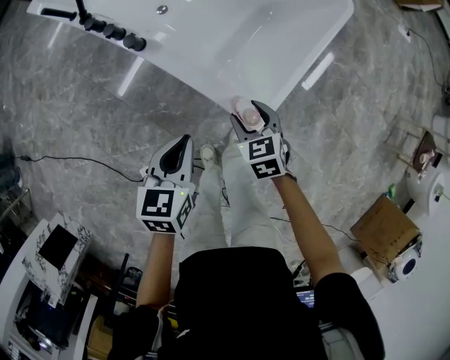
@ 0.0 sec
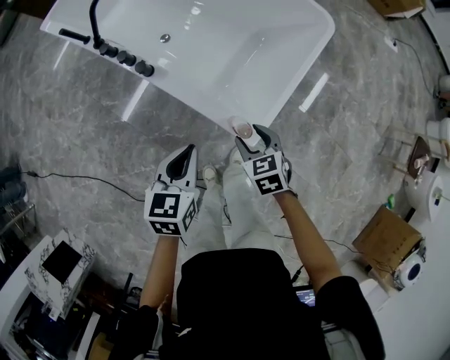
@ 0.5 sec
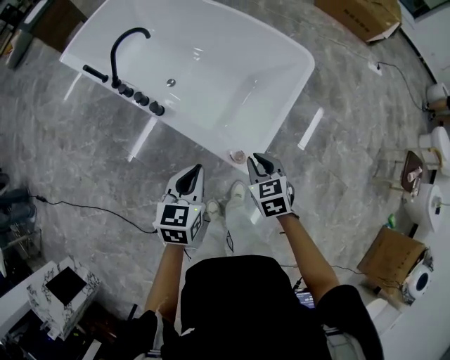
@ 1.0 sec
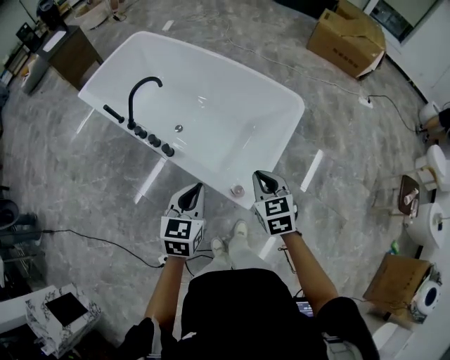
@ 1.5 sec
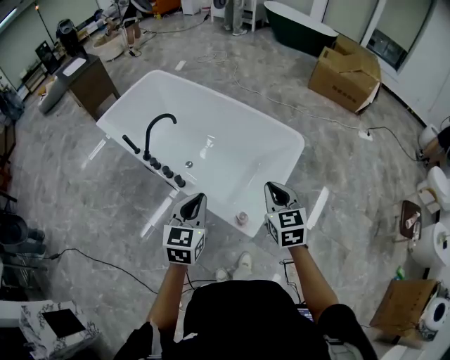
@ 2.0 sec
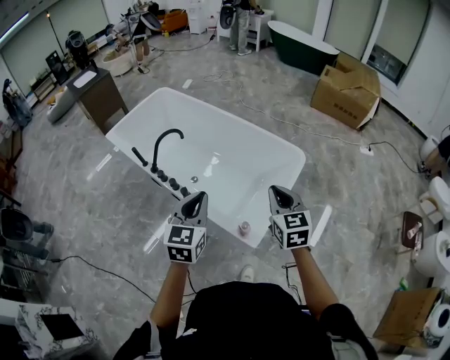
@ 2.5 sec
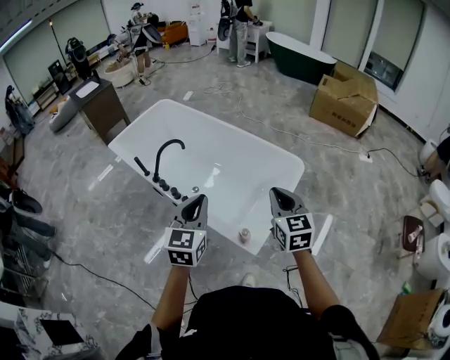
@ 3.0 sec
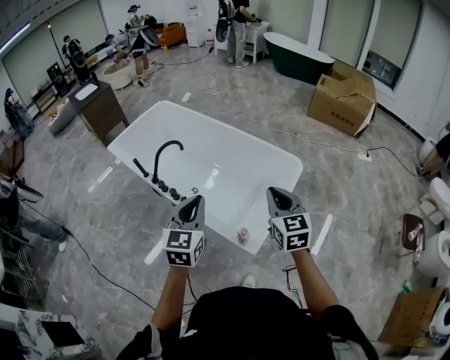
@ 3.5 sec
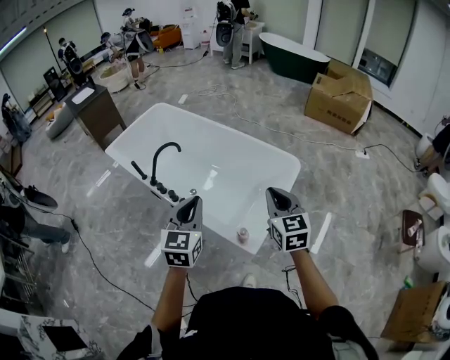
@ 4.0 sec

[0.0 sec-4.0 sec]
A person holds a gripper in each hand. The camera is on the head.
0.0 sec to 2.0 sec: Both grippers travel together upward, about 35 cm. The left gripper changes its angle by approximately 30 degrees, while the right gripper swivels approximately 30 degrees, and closes up.
2.0 sec to 4.0 sec: Both grippers move upward, approximately 10 cm.

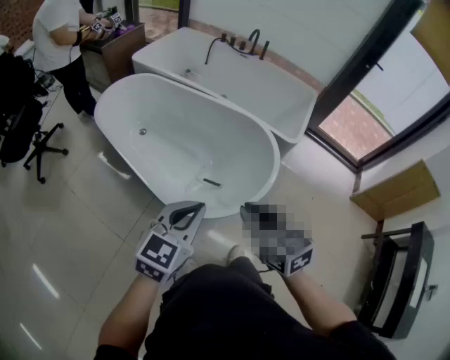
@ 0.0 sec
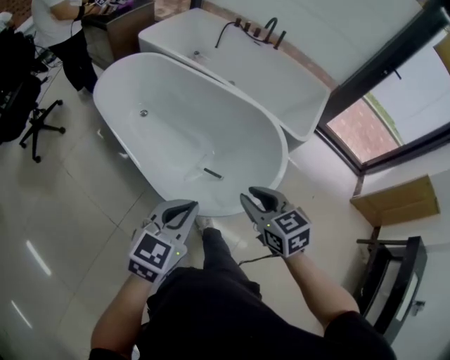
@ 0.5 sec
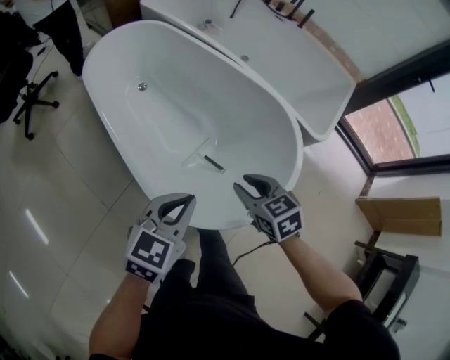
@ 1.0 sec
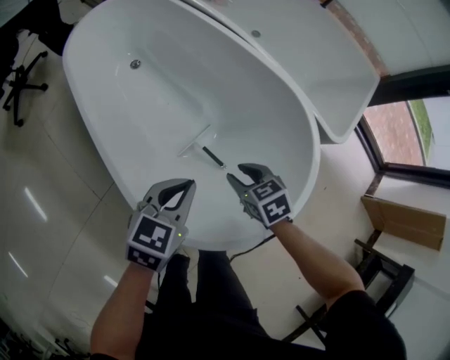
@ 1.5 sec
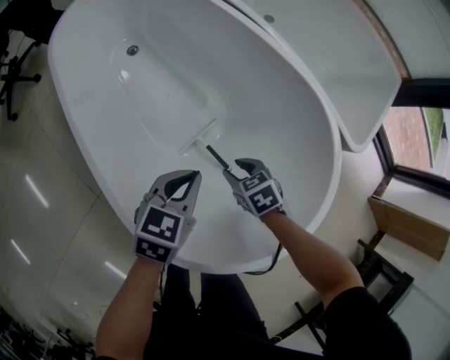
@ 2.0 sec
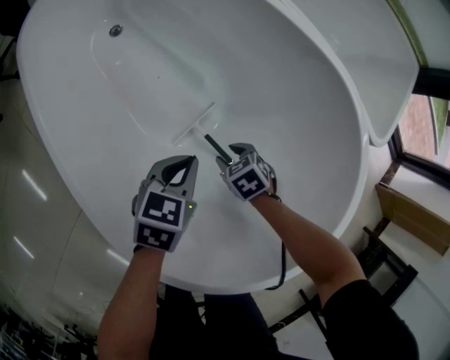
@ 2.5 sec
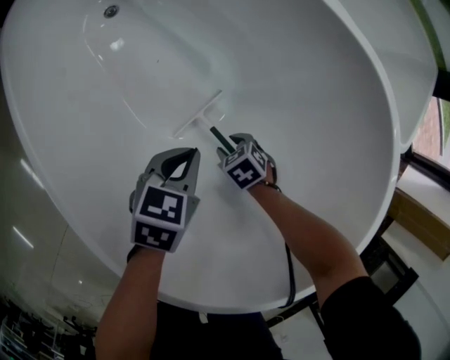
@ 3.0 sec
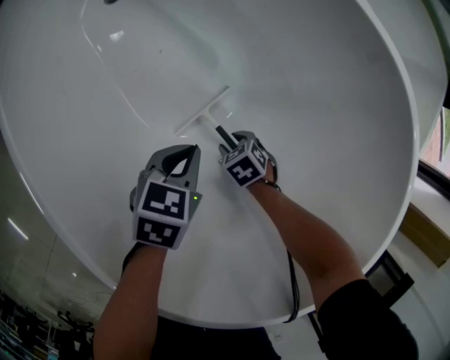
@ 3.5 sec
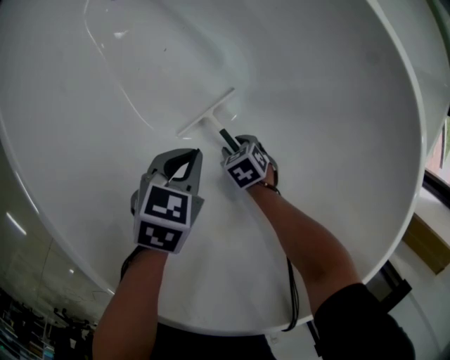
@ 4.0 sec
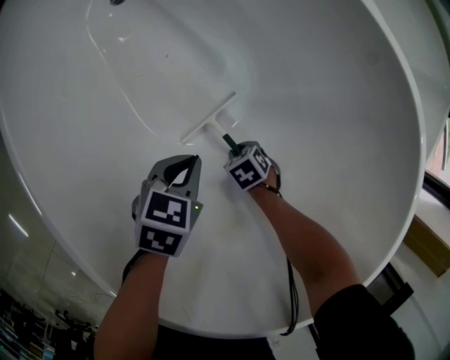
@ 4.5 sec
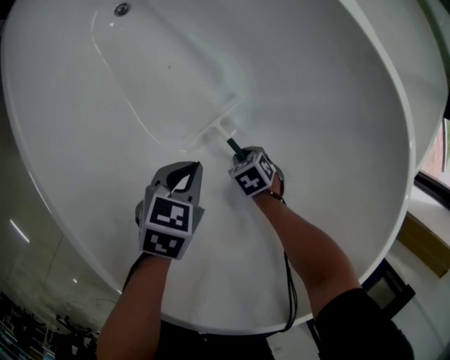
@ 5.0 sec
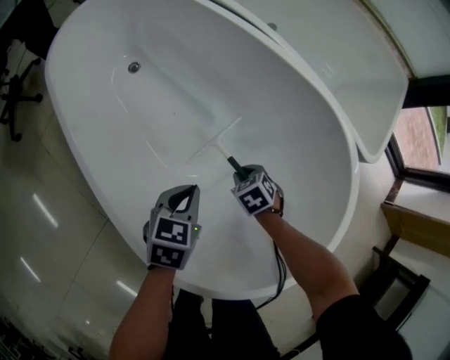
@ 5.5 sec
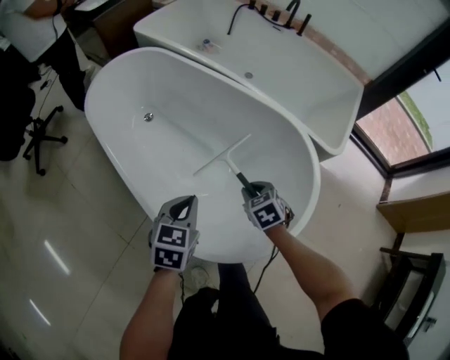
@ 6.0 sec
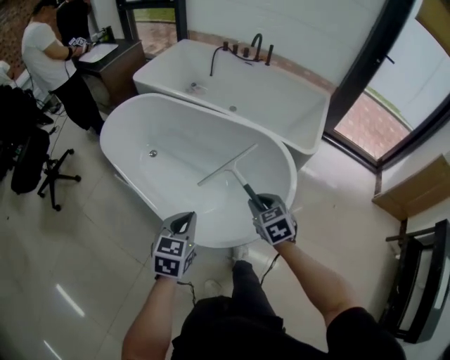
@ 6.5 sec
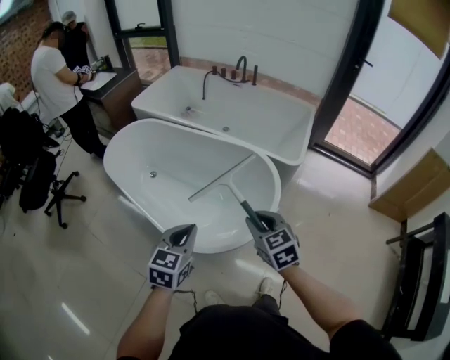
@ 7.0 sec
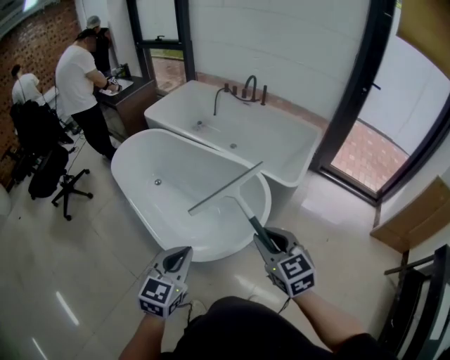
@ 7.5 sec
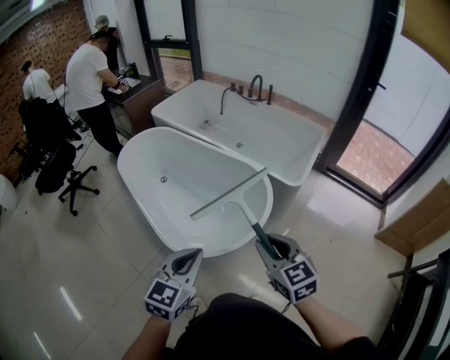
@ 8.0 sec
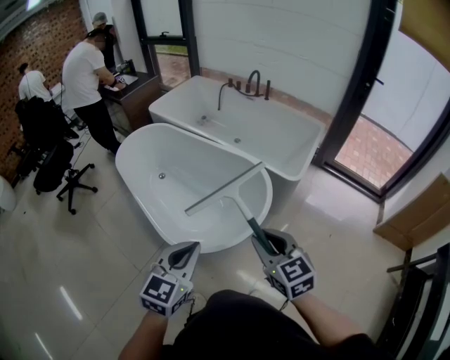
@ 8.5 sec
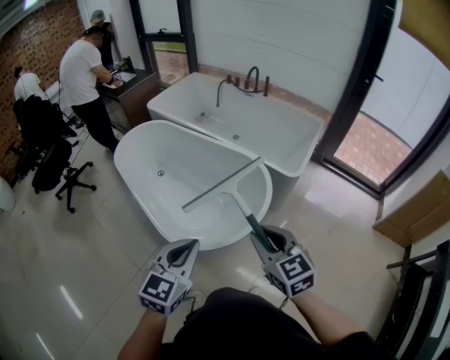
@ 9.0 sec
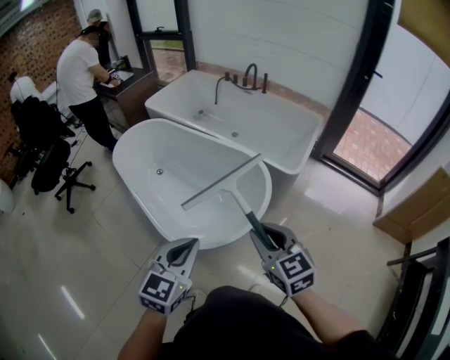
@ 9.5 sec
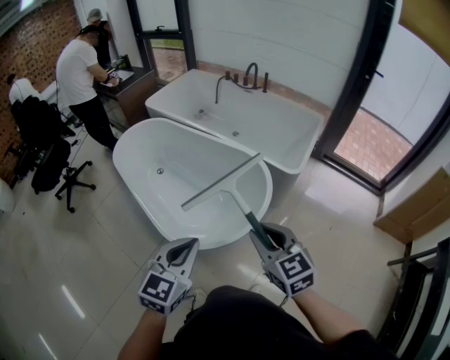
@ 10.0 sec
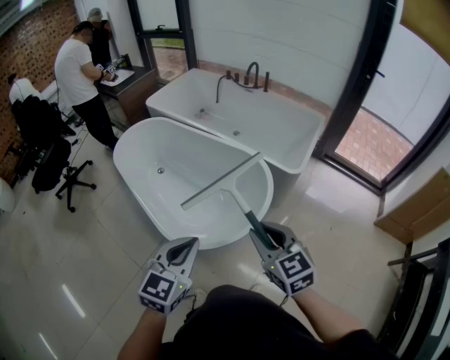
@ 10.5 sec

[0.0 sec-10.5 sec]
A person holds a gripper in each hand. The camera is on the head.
0.0 sec to 2.0 sec: Both grippers travel together downward and forward, roughly 50 cm. The left gripper changes its angle by about 30 degrees. Meanwhile the right gripper tips its fingers downward by some 40 degrees, and opens up.
2.0 sec to 4.0 sec: Both grippers move downward, about 25 cm.
4.0 sec to 6.5 sec: The grippers both shift upward by about 50 cm. The right gripper tips its fingers upward by some 40 degrees, and closes its fingers, while the left gripper swivels about 30 degrees.
6.5 sec to 8.5 sec: The left gripper heads to the right, upward and backward, covering approximately 25 cm. Meanwhile the right gripper heads upward, backward and to the right, covering about 30 cm, and swivels some 30 degrees.
8.5 sec to 10.5 sec: The two grippers keep their place.

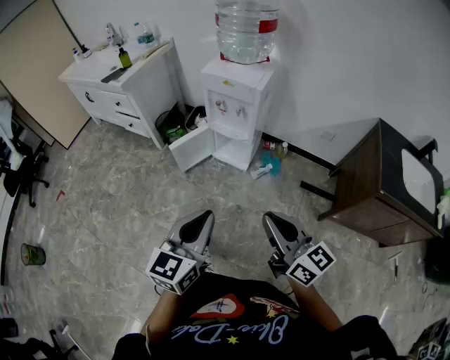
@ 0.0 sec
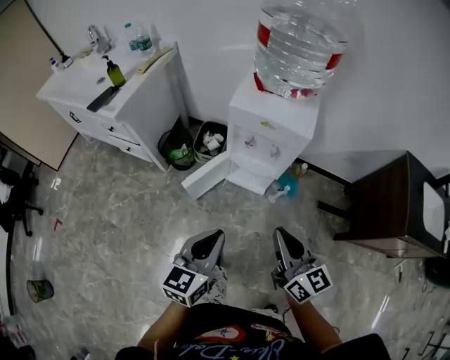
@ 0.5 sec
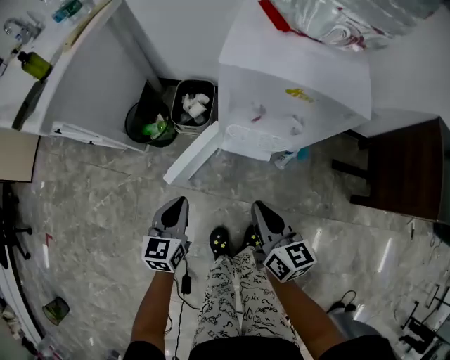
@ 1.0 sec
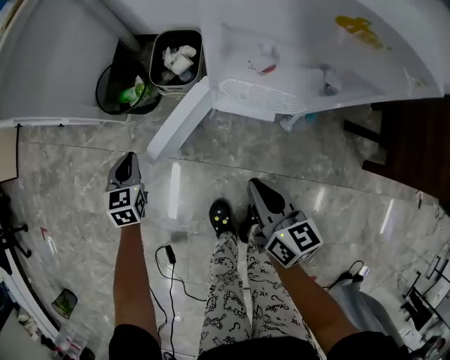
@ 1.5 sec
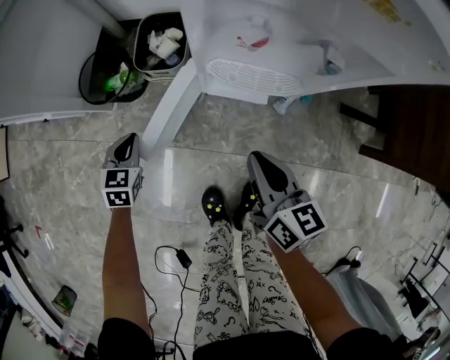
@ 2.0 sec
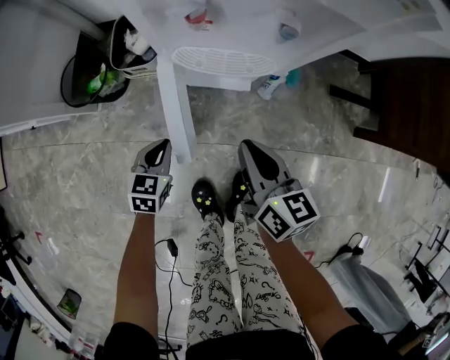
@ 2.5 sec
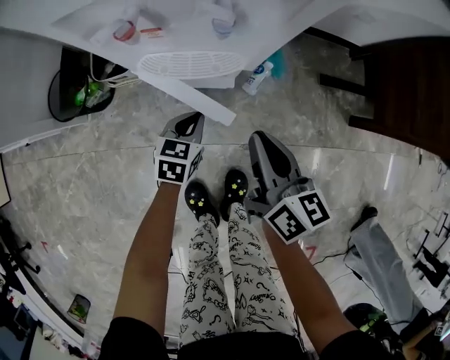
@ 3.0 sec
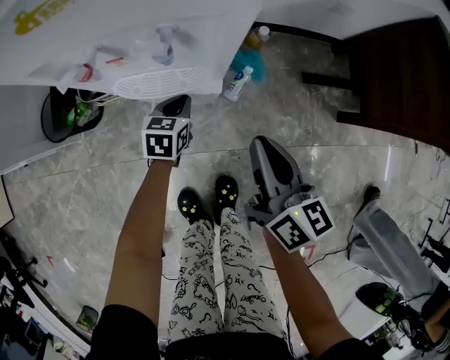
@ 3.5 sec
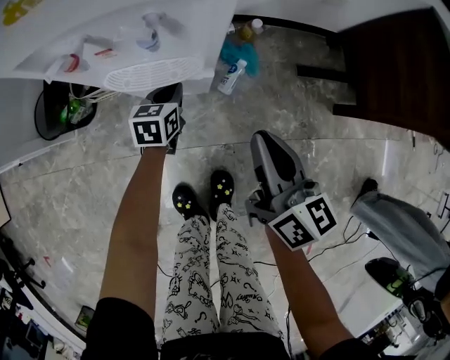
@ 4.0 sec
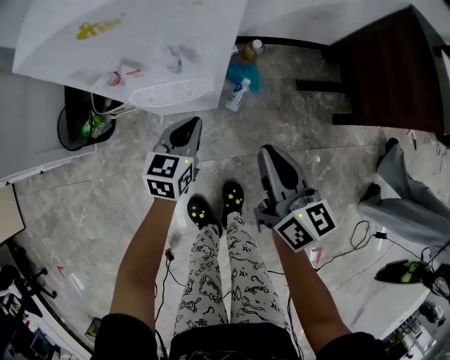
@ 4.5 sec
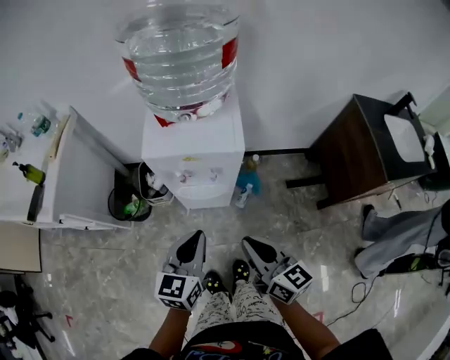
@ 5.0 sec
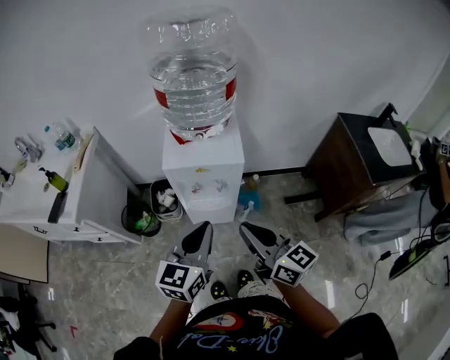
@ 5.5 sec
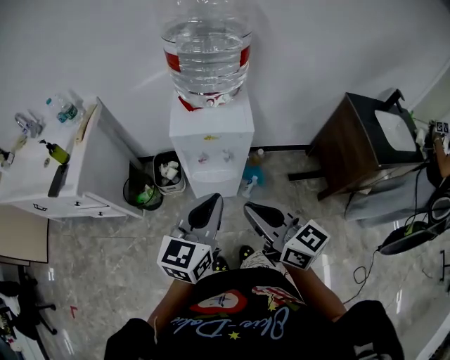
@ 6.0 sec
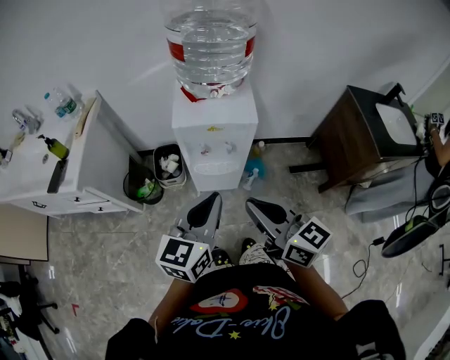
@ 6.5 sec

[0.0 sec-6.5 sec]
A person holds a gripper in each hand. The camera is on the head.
0.0 sec to 2.0 sec: The pair of grippers is taken forward and to the left, approximately 50 cm. Both grippers move downward, roughly 50 cm. The left gripper tips its fingers downward by roughly 40 degrees. Meanwhile the right gripper rotates about 40 degrees.
2.0 sec to 4.5 sec: The right gripper shifts by some 25 cm, and rotates approximately 20 degrees; the left gripper moves some 40 cm, and rotates some 30 degrees.
4.5 sec to 6.5 sec: The left gripper heads upward, covering approximately 40 cm, and swivels roughly 20 degrees. The right gripper travels upward and to the left by about 35 cm, and rotates roughly 30 degrees.

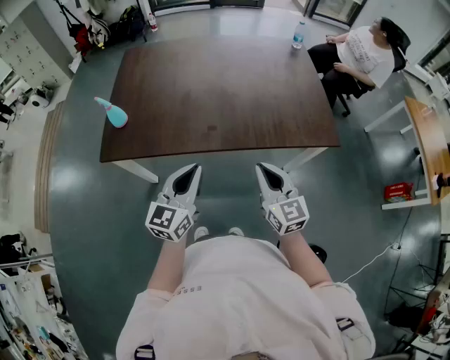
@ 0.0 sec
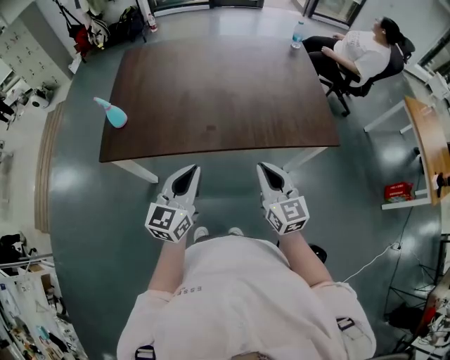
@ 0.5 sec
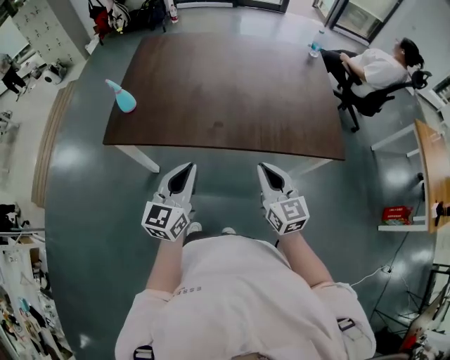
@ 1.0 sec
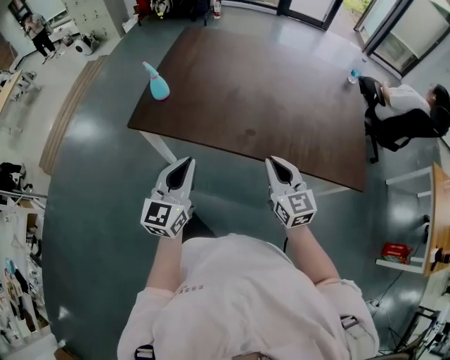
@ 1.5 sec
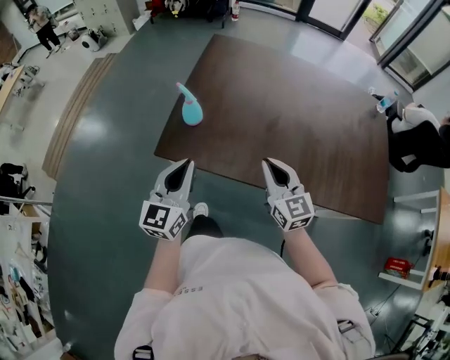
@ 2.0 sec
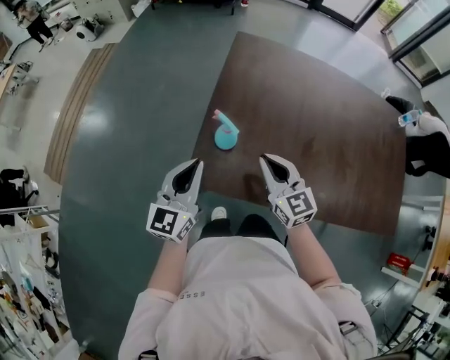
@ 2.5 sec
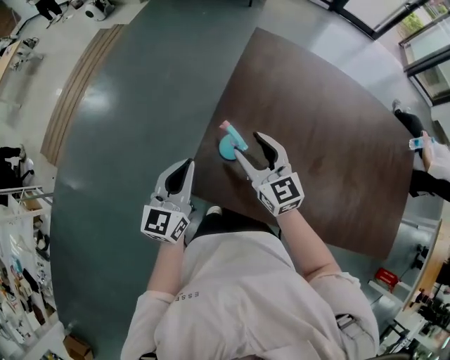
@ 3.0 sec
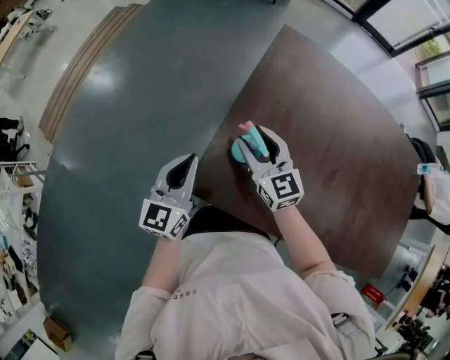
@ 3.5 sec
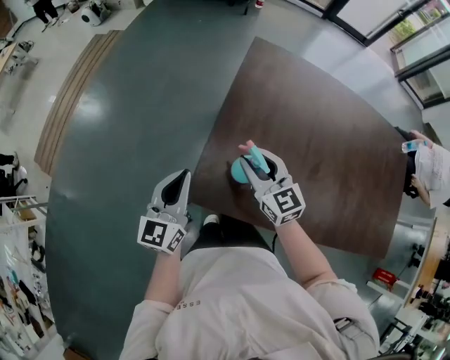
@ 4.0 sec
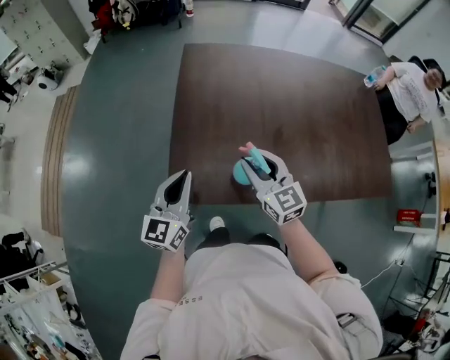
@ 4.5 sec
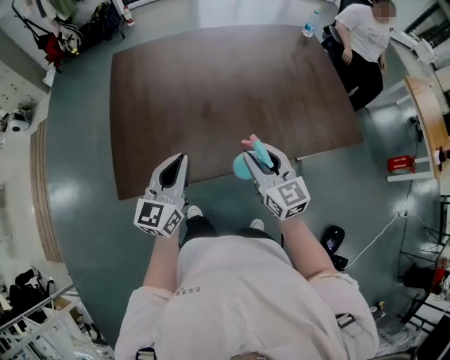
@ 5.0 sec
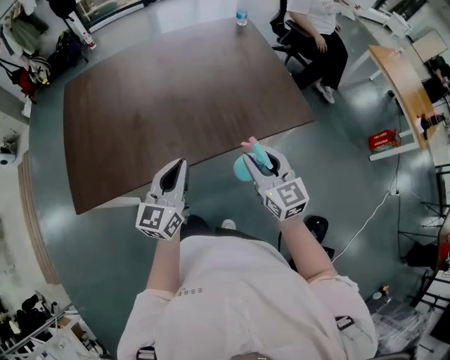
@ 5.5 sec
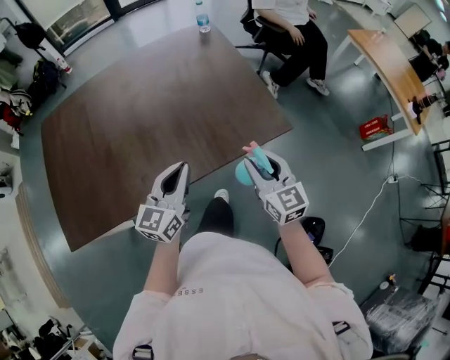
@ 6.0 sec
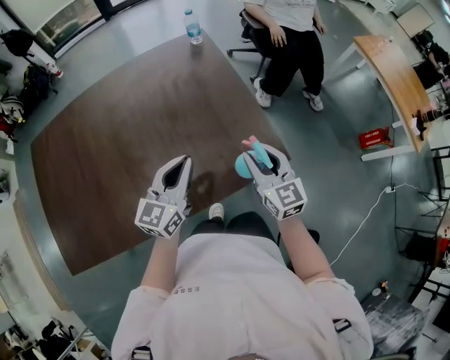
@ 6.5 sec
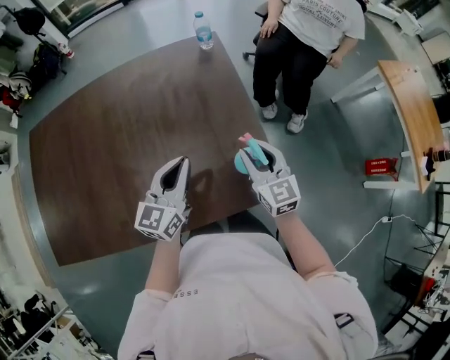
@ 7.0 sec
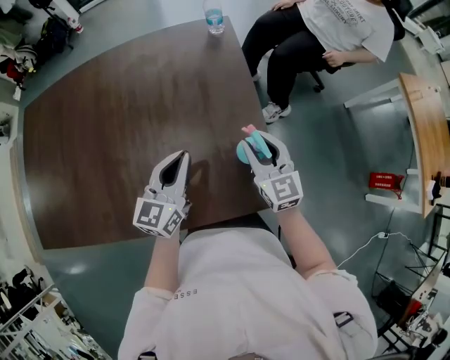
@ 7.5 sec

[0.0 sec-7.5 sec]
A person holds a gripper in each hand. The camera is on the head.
0.0 sec to 2.0 sec: Both grippers travel together to the left and forward, about 30 cm. The left gripper turns by about 20 degrees.
2.0 sec to 4.0 sec: The two grippers go some 25 cm forward and to the left. The right gripper opens its fingers.
4.0 sec to 5.5 sec: Both grippers are carried about 60 cm. The right gripper changes its angle by approximately 40 degrees; the left gripper rotates some 40 degrees.
5.5 sec to 7.5 sec: Both grippers move forward and to the right, some 40 cm.
